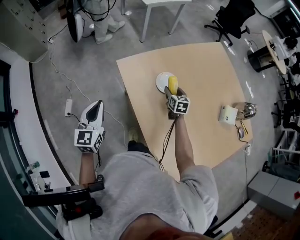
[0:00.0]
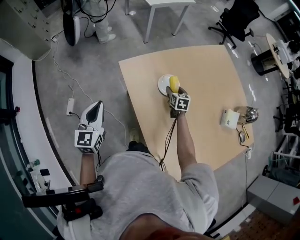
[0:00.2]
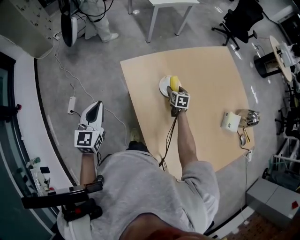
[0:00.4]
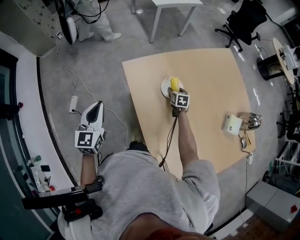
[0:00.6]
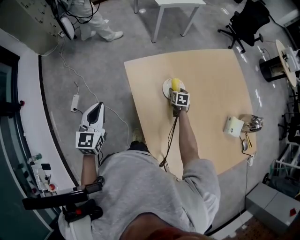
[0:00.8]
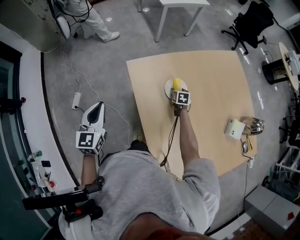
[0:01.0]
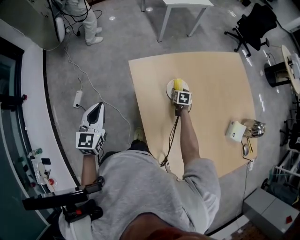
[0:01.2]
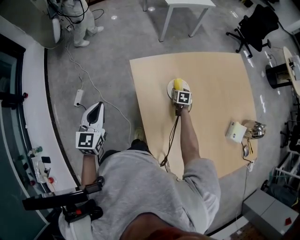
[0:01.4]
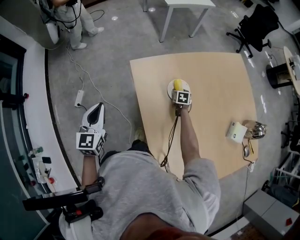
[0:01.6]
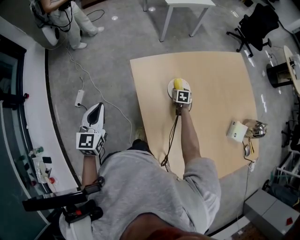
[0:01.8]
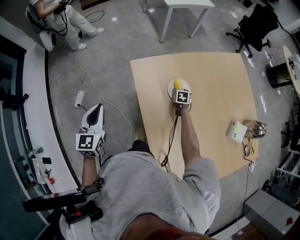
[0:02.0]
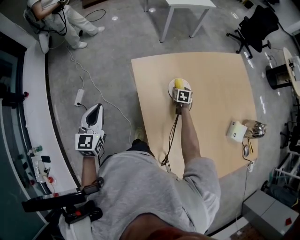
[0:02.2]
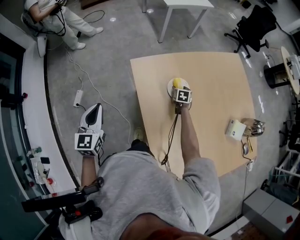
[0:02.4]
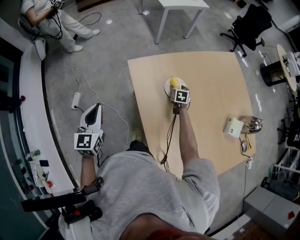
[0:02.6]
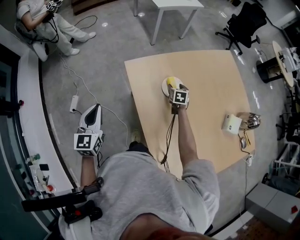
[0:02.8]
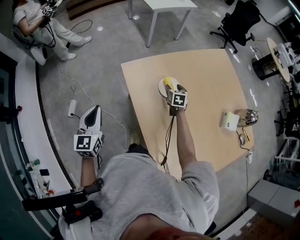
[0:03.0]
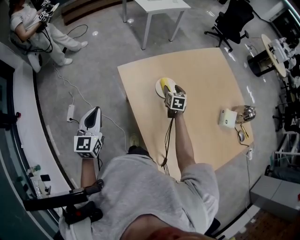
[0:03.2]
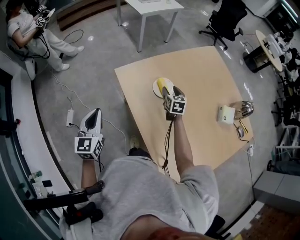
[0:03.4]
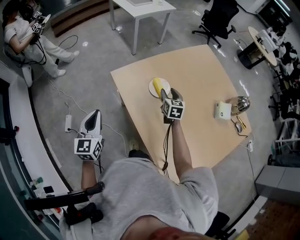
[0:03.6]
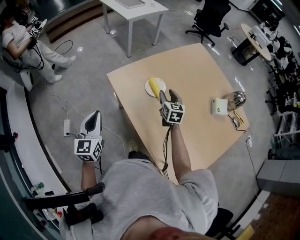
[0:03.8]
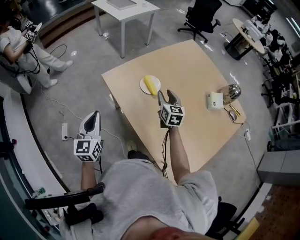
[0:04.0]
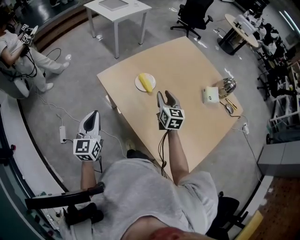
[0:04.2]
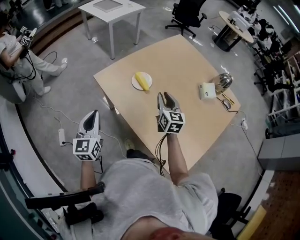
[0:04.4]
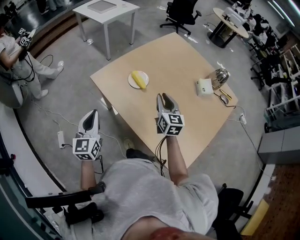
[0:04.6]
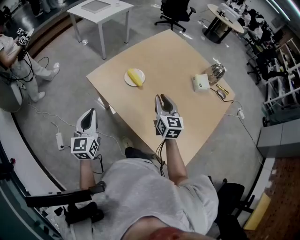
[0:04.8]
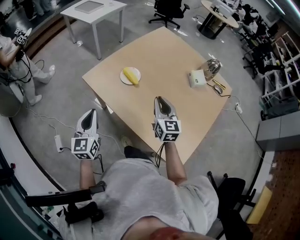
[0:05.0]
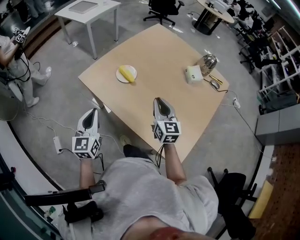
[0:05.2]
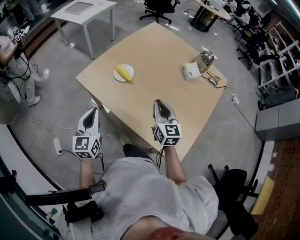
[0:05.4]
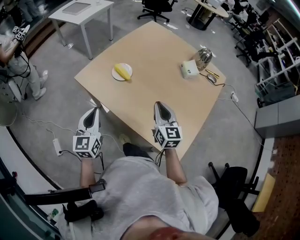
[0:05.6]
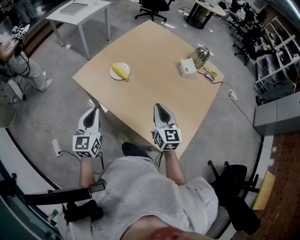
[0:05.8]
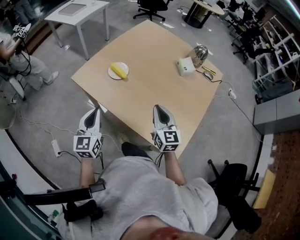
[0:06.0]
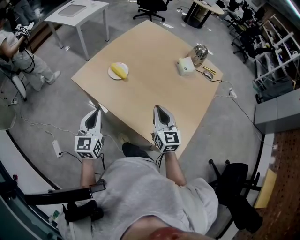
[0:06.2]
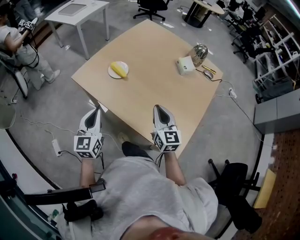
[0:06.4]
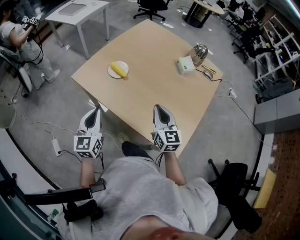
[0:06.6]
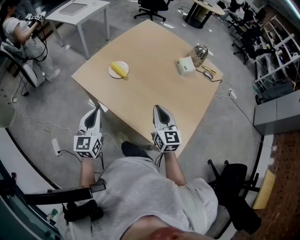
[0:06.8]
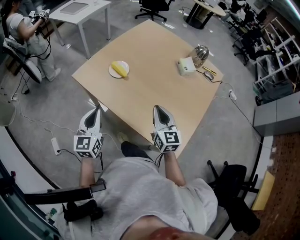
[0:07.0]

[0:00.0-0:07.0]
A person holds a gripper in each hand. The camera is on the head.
0:00.0 to 0:01.4: The right gripper moves downward and forward, some 15 cm.
0:01.4 to 0:02.8: The right gripper goes approximately 5 cm upward.
0:02.8 to 0:04.2: The left gripper travels to the right by about 5 cm; the right gripper travels upward and backward by some 25 cm, turns by some 30 degrees, and closes its fingers.
0:04.2 to 0:05.6: The left gripper heads to the right, covering approximately 10 cm, while the right gripper goes some 20 cm backward, and closes up.
0:05.6 to 0:07.0: The grippers make only small movements.

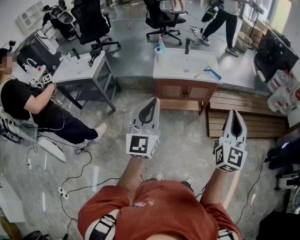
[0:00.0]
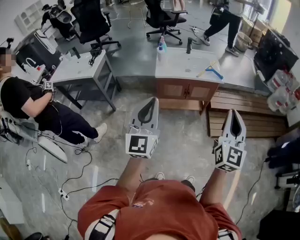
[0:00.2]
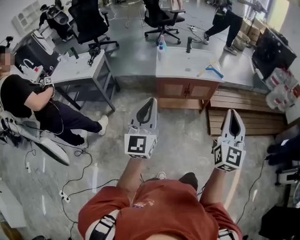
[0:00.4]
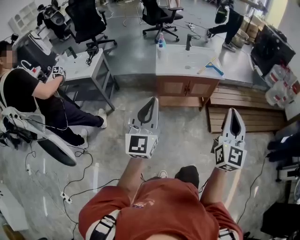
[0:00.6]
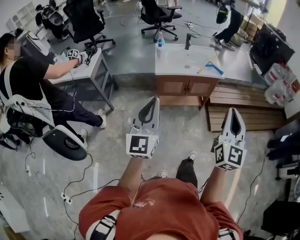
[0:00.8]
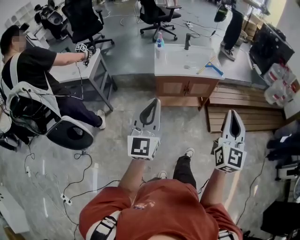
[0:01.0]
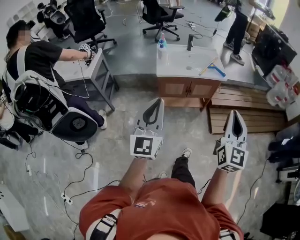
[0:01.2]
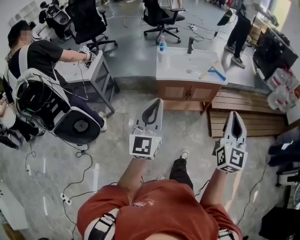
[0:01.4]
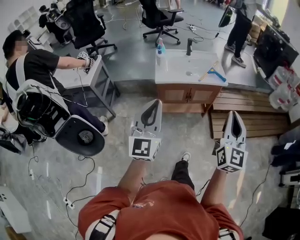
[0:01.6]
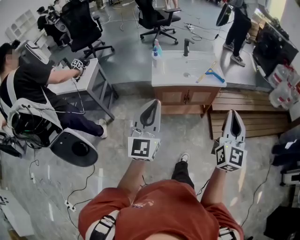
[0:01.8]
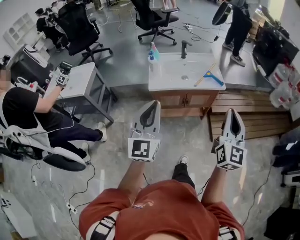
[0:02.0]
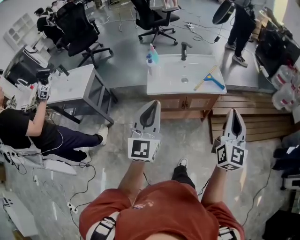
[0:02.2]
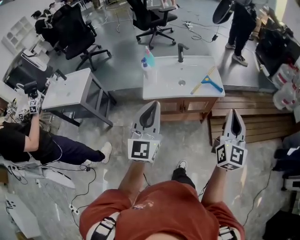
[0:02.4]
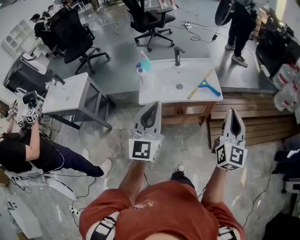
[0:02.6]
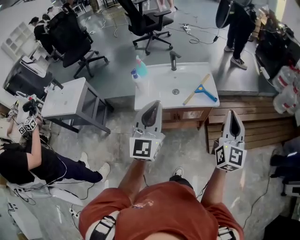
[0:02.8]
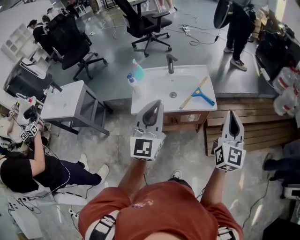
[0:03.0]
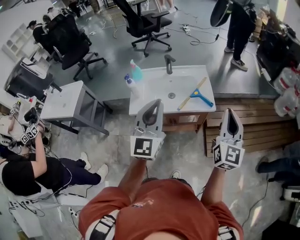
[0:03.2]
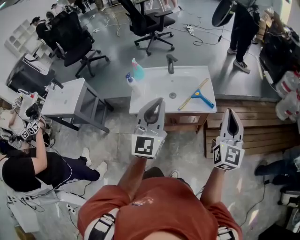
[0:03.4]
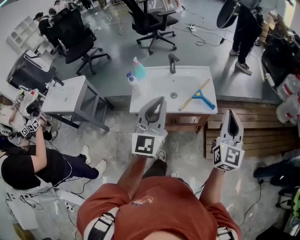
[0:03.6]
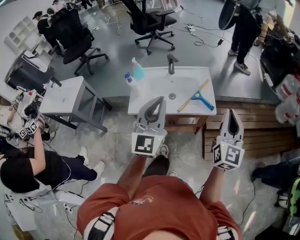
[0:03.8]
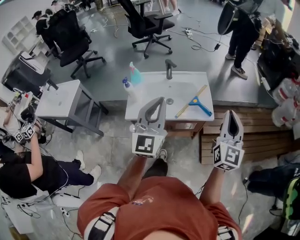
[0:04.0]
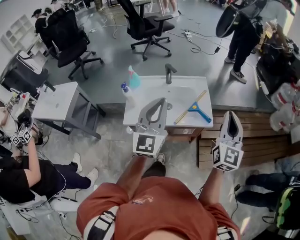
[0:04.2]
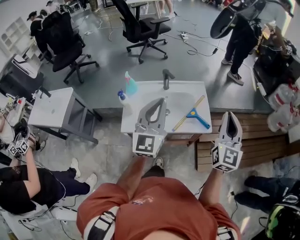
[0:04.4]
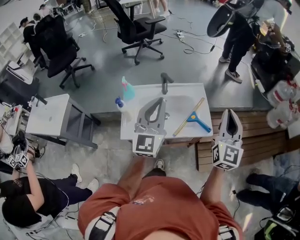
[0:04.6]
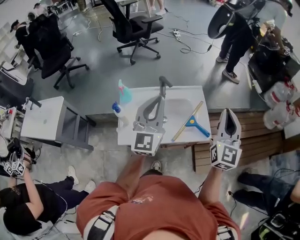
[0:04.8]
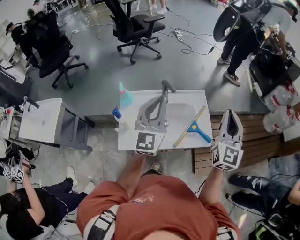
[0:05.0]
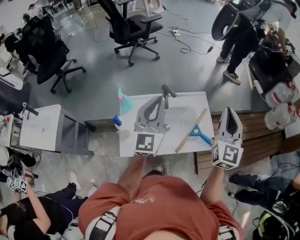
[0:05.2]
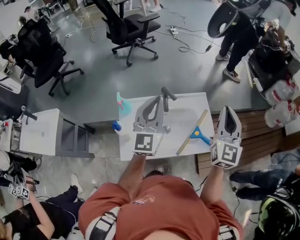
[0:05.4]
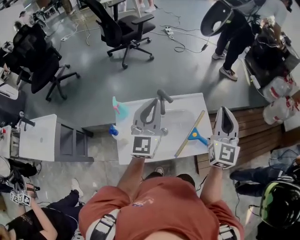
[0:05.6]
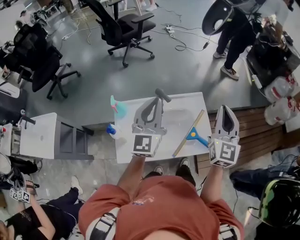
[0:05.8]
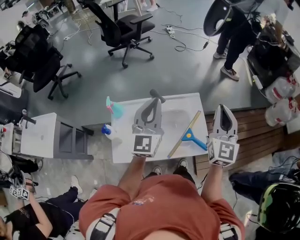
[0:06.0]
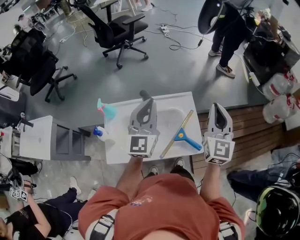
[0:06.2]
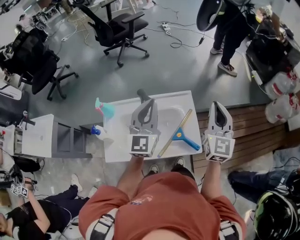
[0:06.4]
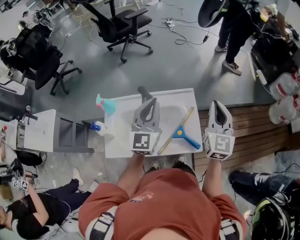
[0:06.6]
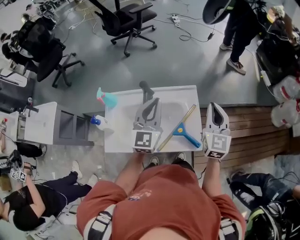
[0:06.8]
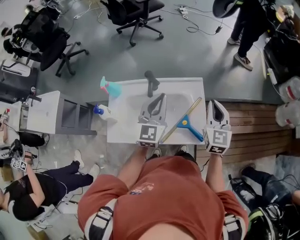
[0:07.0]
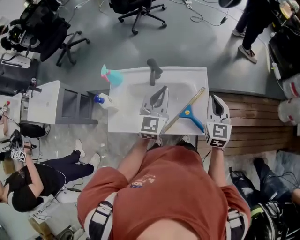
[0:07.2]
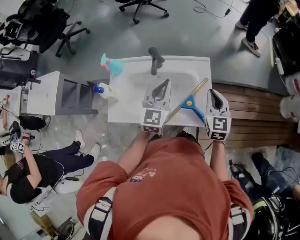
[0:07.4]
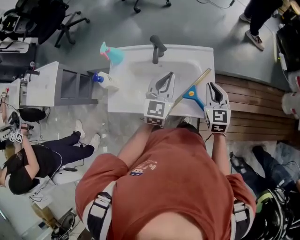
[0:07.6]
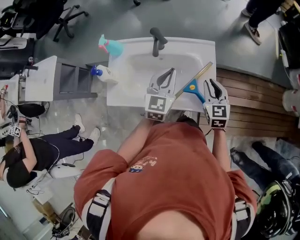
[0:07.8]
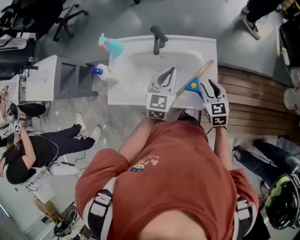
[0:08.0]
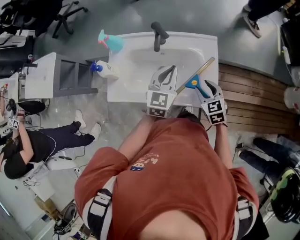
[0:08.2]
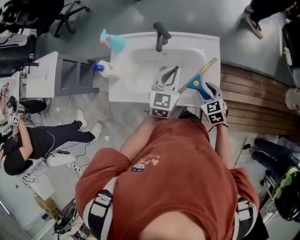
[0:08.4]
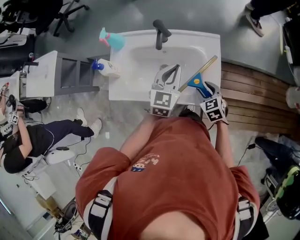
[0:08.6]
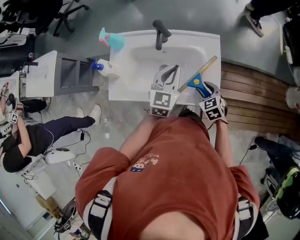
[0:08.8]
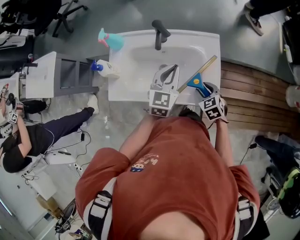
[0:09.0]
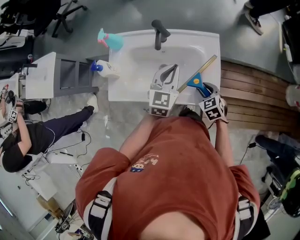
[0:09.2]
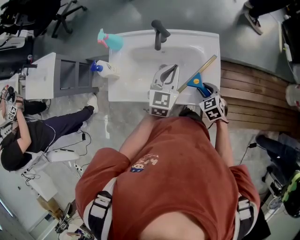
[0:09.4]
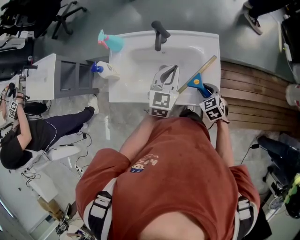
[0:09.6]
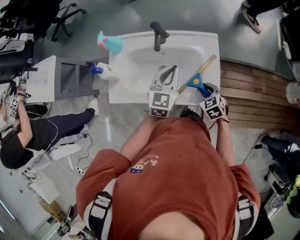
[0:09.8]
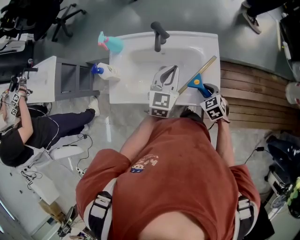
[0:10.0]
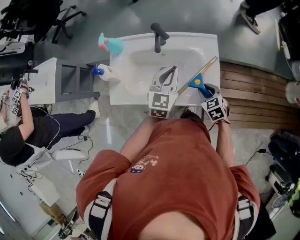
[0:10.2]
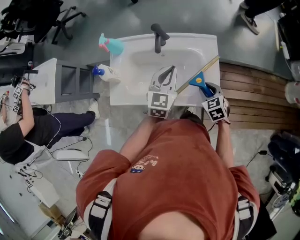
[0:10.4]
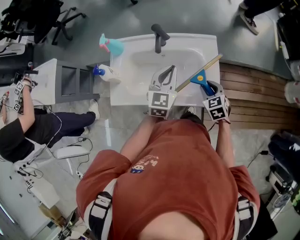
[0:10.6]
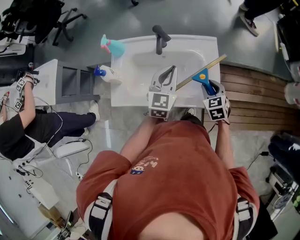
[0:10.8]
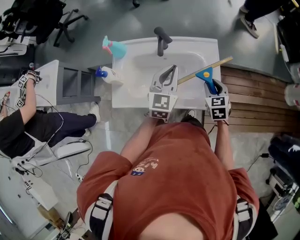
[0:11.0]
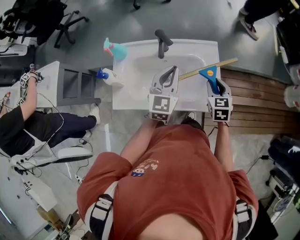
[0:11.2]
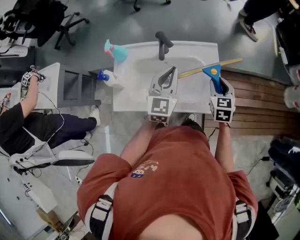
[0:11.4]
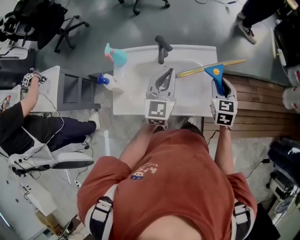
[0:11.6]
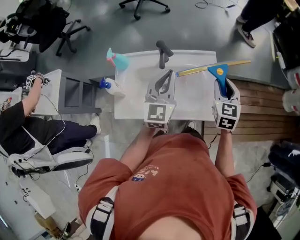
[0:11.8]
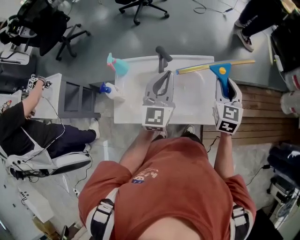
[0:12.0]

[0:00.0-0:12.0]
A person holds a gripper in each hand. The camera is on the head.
0:00.0 to 0:01.6: The left gripper travels forward and to the left by roughly 10 cm, while the right gripper heads to the left and forward, covering approximately 10 cm.
0:01.6 to 0:03.0: The pair of grippers is taken forward and to the right, about 40 cm.
0:03.0 to 0:04.4: The grippers both shift forward by some 20 cm.
0:04.4 to 0:06.0: Both grippers travel together forward, approximately 25 cm.
0:06.0 to 0:07.6: The right gripper heads downward, covering roughly 25 cm, and rotates approximately 30 degrees; the left gripper is displaced downward and to the right by some 20 cm, and rotates some 20 degrees.
0:07.6 to 0:09.0: The right gripper moves downward, about 15 cm, rotates roughly 30 degrees, and opens up; the left gripper shifts roughly 5 cm downward.
0:09.0 to 0:10.4: The grippers move only a little.
0:10.4 to 0:12.0: The left gripper moves upward, roughly 15 cm; the right gripper goes some 20 cm upward, and swivels some 40 degrees.

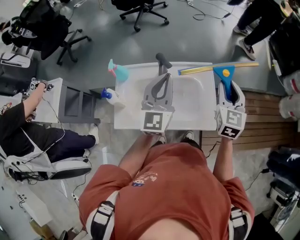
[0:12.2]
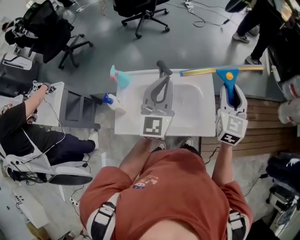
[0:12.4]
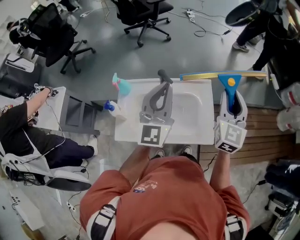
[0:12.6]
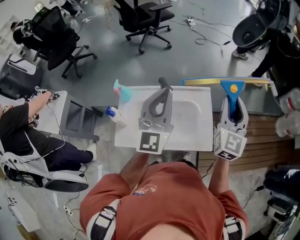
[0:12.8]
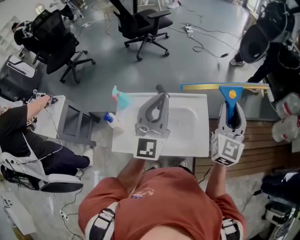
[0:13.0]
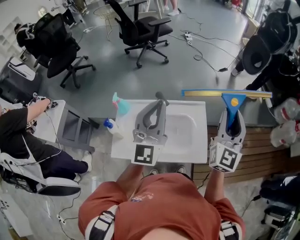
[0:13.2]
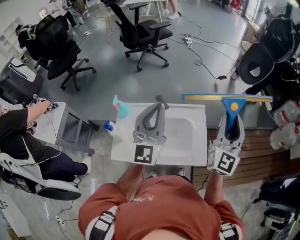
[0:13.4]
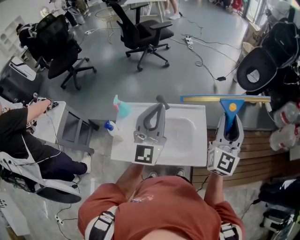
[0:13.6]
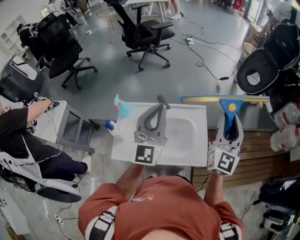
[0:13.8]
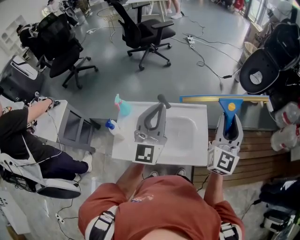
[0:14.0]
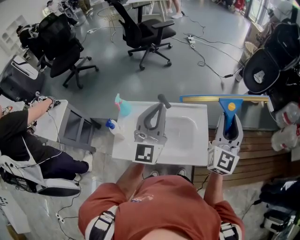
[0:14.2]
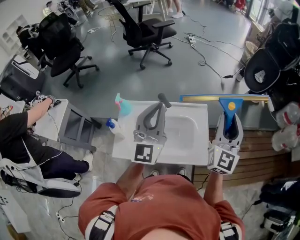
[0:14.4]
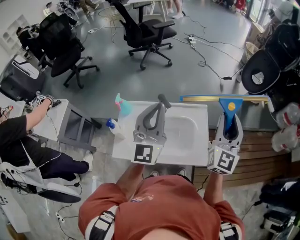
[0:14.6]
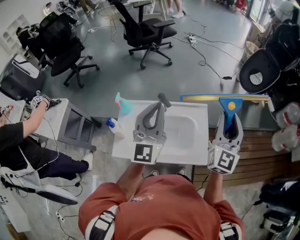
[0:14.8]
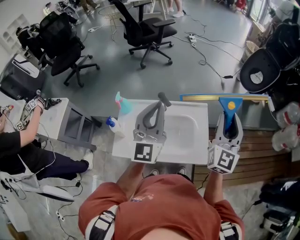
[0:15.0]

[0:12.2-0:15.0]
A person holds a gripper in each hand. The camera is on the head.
0:12.2 to 0:13.6: The two grippers go about 10 cm upward. The right gripper changes its angle by approximately 30 degrees.
0:13.6 to 0:15.0: The grippers stay close to where they were, moving slightly.

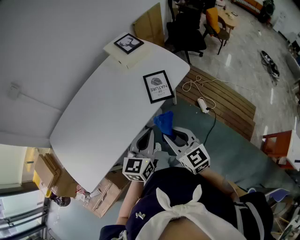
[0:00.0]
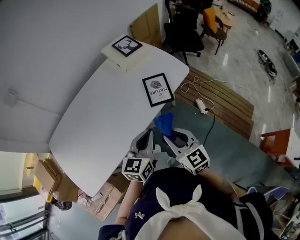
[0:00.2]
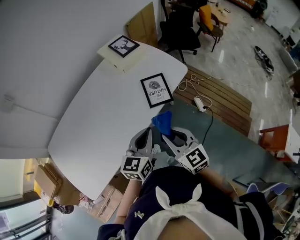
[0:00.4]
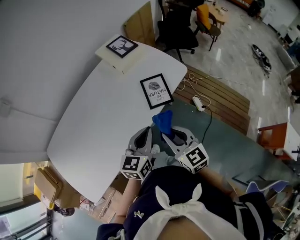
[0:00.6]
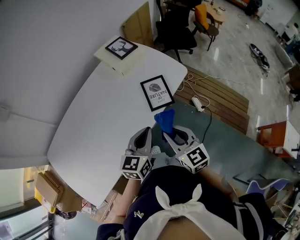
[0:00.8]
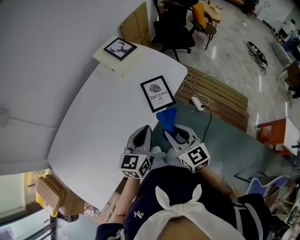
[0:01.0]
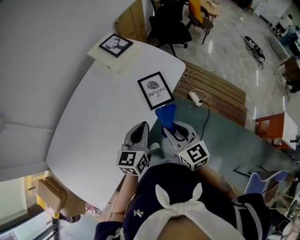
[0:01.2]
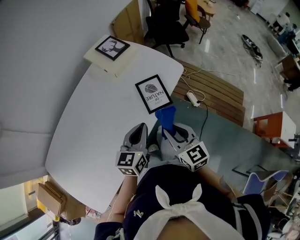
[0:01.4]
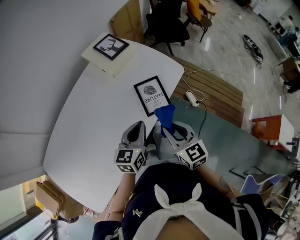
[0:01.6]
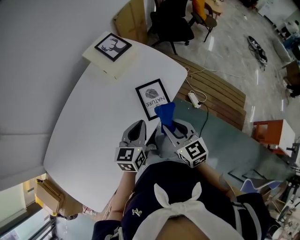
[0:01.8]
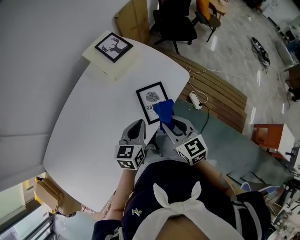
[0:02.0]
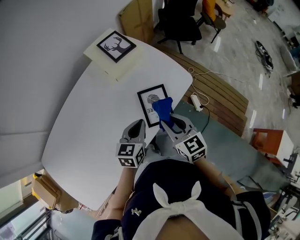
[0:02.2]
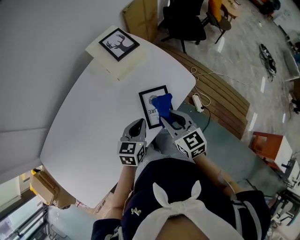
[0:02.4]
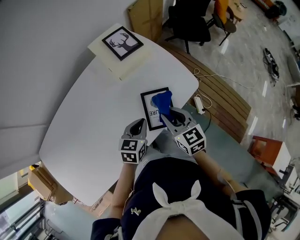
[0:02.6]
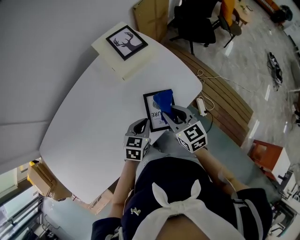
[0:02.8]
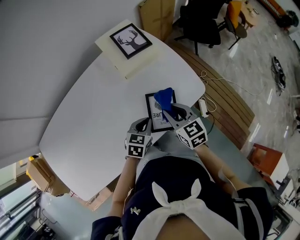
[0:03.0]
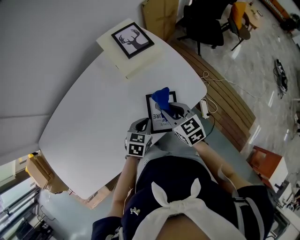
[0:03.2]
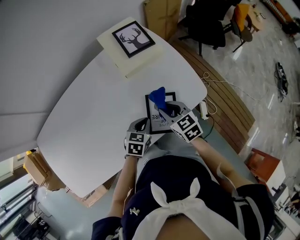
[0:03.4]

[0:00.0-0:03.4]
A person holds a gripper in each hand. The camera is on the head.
0:00.0 to 0:01.6: The two grippers go approximately 15 cm forward.
0:01.6 to 0:03.4: The right gripper moves forward and downward, approximately 25 cm, and swivels about 30 degrees. The left gripper shifts roughly 20 cm downward and forward, and turns by approximately 30 degrees.
